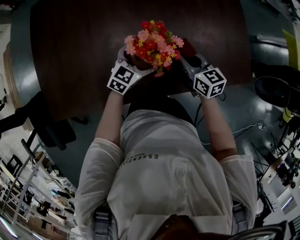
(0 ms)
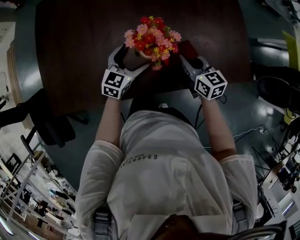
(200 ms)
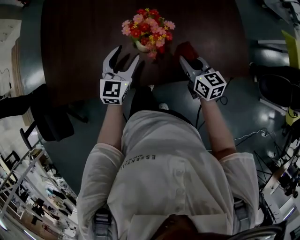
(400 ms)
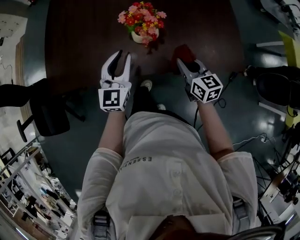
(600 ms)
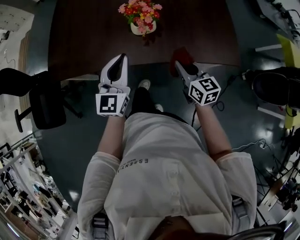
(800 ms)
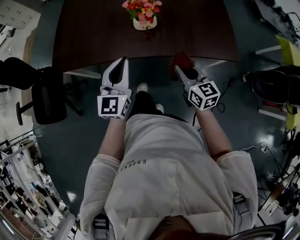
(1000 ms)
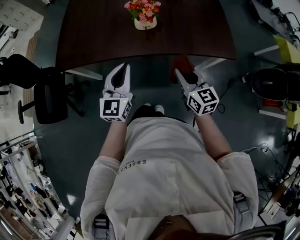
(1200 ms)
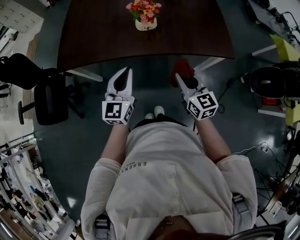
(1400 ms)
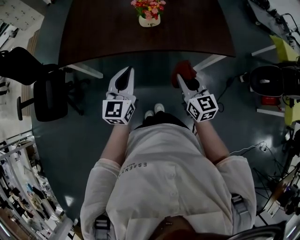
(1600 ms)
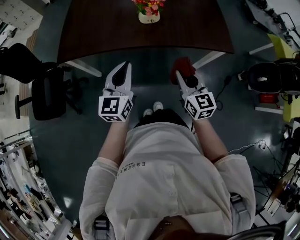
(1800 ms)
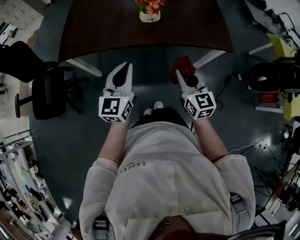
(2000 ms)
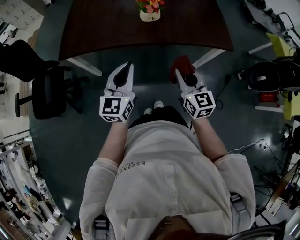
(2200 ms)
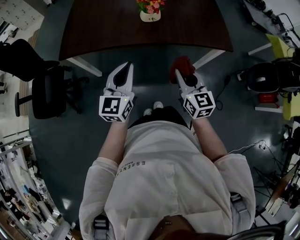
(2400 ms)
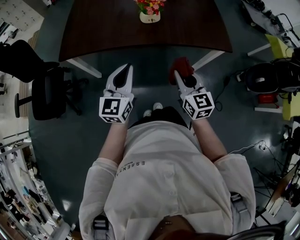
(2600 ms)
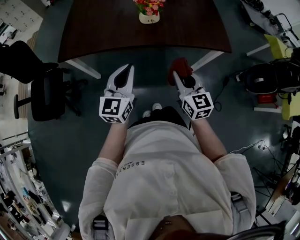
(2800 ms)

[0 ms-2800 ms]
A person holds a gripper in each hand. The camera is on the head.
0 ms to 1400 ms: The right gripper is displaced backward by some 30 cm. Meanwhile the left gripper travels backward and upward by about 35 cm, rotates about 40 degrees, and closes its fingers.
1400 ms to 2800 ms: Both grippers travel together backward, some 5 cm.

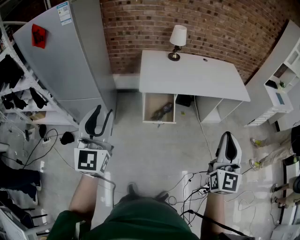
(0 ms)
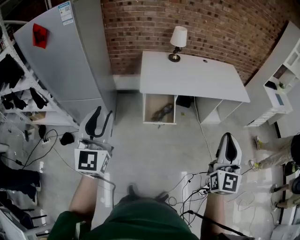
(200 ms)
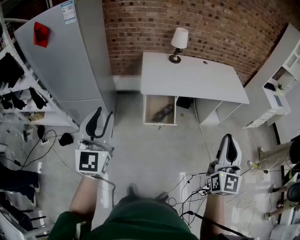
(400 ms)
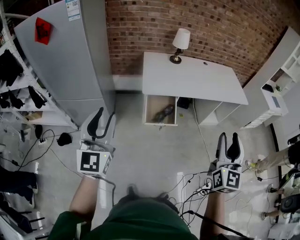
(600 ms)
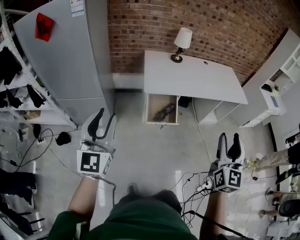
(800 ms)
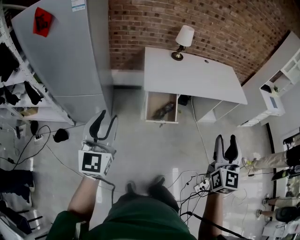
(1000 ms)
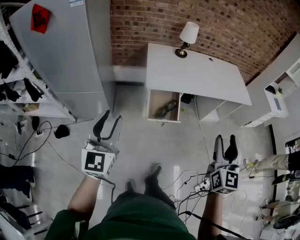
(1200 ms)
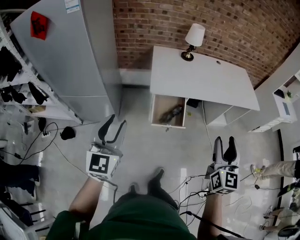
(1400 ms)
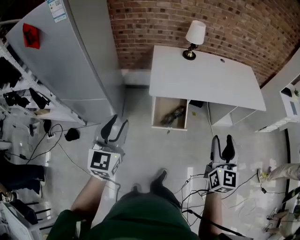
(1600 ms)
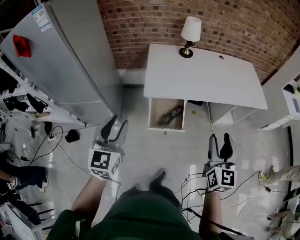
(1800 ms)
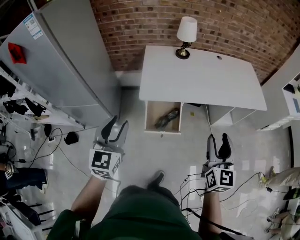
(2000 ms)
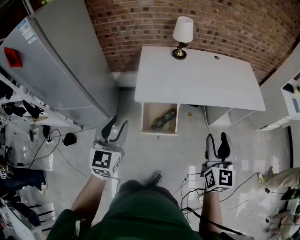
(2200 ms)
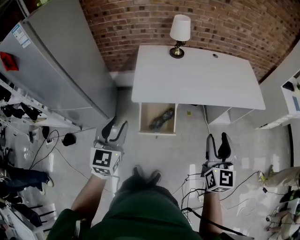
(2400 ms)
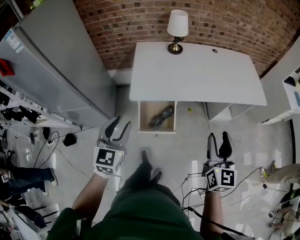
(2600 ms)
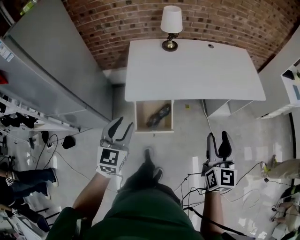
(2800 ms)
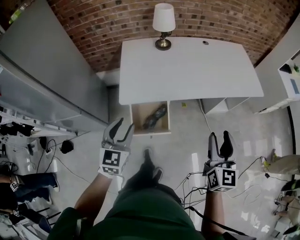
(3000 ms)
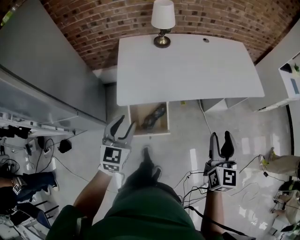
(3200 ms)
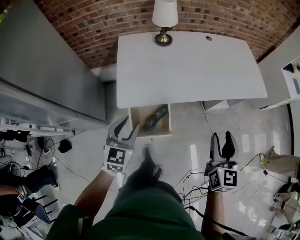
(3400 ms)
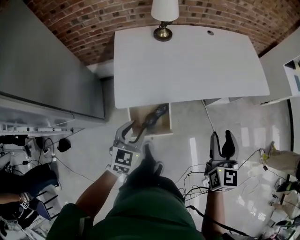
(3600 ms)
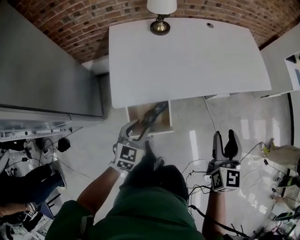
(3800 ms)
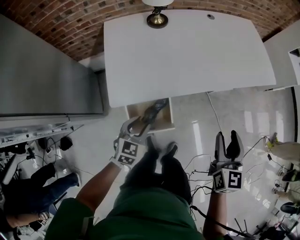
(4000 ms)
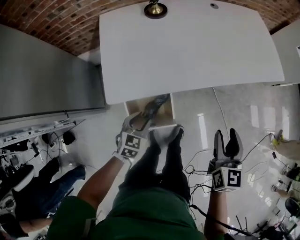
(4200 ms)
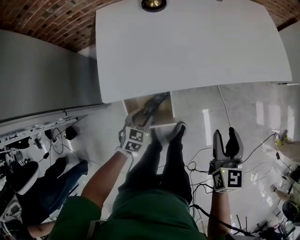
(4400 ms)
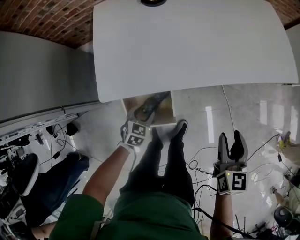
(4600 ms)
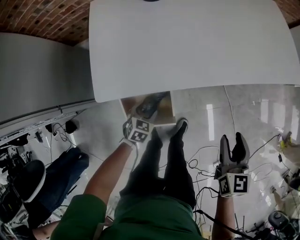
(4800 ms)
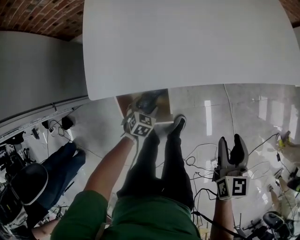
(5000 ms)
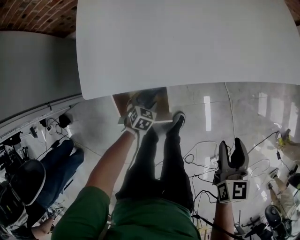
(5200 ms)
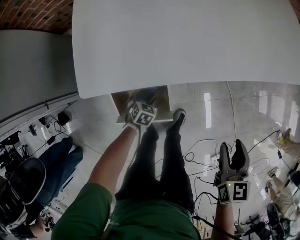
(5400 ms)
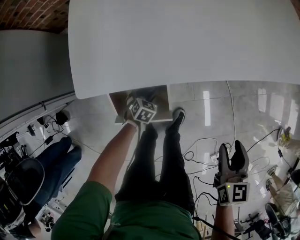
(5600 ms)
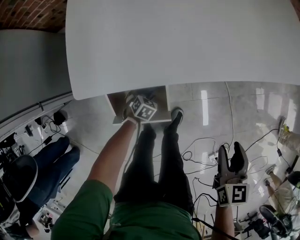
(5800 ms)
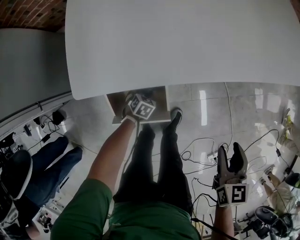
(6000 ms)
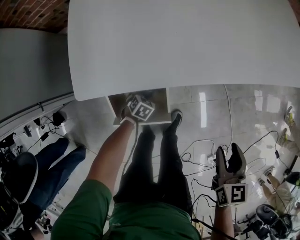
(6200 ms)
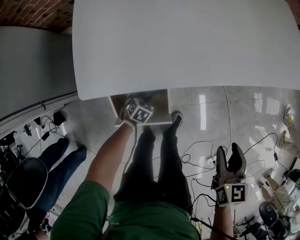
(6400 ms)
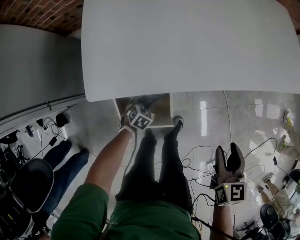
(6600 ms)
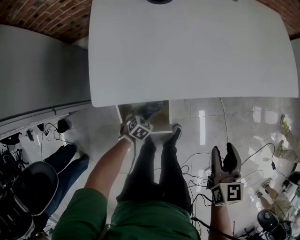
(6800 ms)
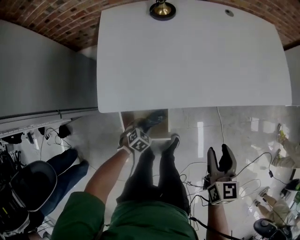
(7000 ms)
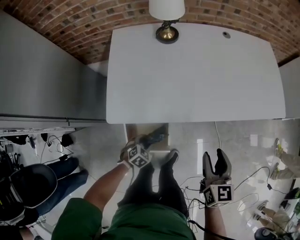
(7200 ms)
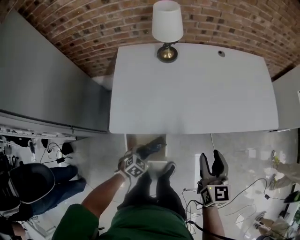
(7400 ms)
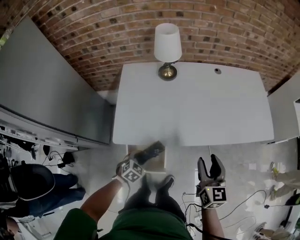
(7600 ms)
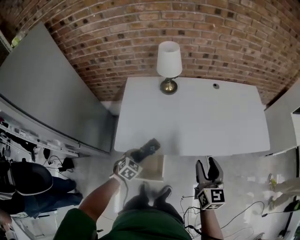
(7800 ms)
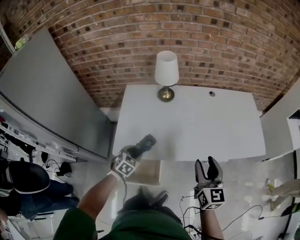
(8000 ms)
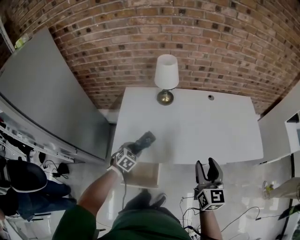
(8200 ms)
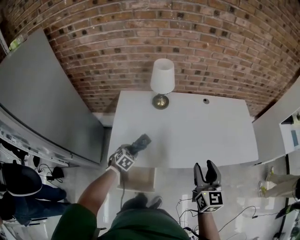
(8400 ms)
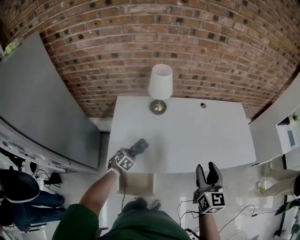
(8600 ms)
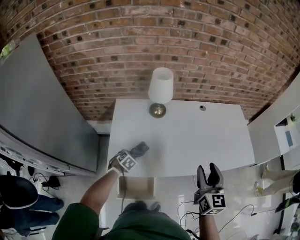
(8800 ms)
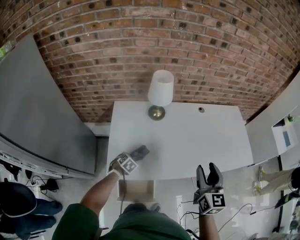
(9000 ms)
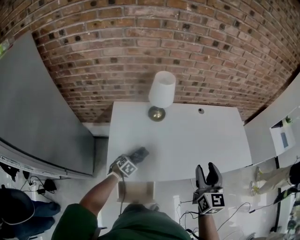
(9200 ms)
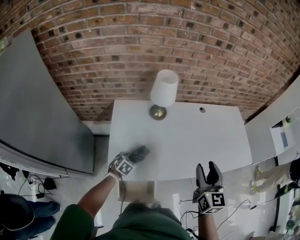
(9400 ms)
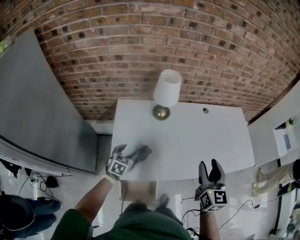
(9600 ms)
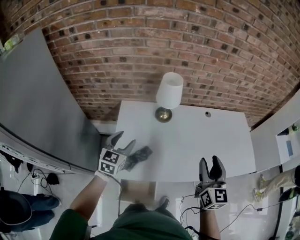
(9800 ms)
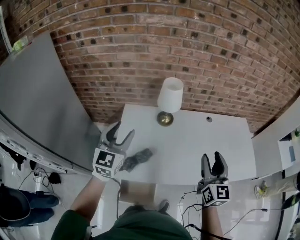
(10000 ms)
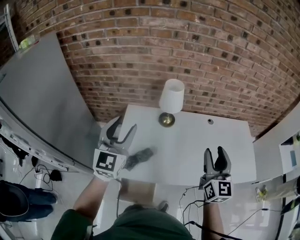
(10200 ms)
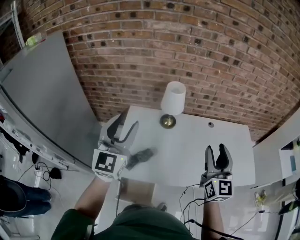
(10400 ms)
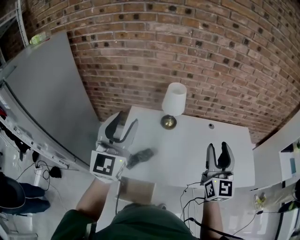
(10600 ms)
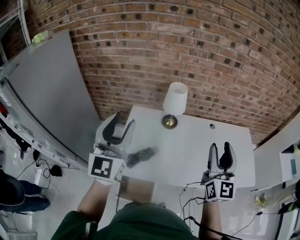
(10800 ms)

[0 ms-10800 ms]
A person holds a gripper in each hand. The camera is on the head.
0 ms to 1600 ms: Both grippers move forward and downward, roughly 20 cm. The right gripper opens.
1600 ms to 3000 ms: The left gripper heads forward, to the right and downward, covering approximately 30 cm. The right gripper travels forward and to the right by approximately 20 cm.
3000 ms to 4600 ms: The left gripper moves downward and forward, approximately 40 cm, and points its fingers some 30 degrees further downward. The right gripper heads downward and forward, covering approximately 30 cm, and swivels approximately 20 degrees.
4600 ms to 6200 ms: The right gripper travels downward by roughly 10 cm. The left gripper is displaced downward by some 25 cm, and opens, then closes again.
6200 ms to 7800 ms: Both grippers travel together upward, approximately 35 cm. The right gripper changes its angle by about 30 degrees.
7800 ms to 9200 ms: The left gripper heads forward, to the left and downward, covering about 15 cm. The right gripper heads upward, forward and to the left, covering about 15 cm.
9200 ms to 10800 ms: The left gripper moves upward, some 60 cm, and points its fingers roughly 80 degrees further upward. Meanwhile the right gripper moves upward, approximately 15 cm, and rotates some 20 degrees.

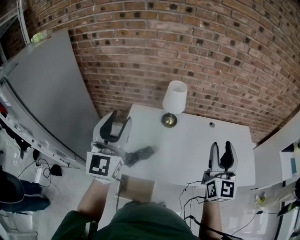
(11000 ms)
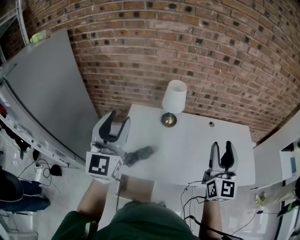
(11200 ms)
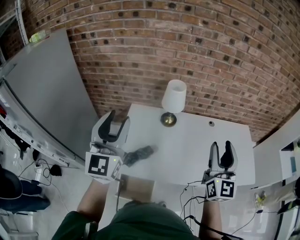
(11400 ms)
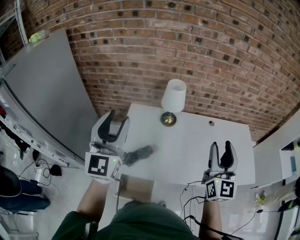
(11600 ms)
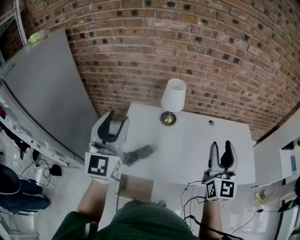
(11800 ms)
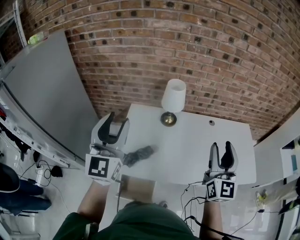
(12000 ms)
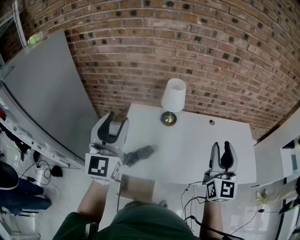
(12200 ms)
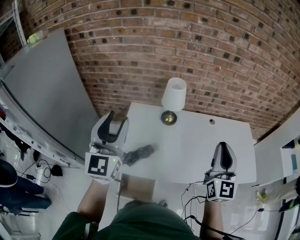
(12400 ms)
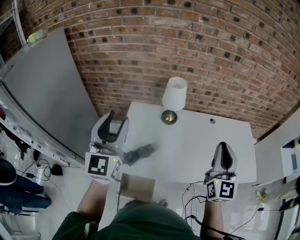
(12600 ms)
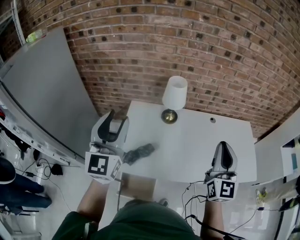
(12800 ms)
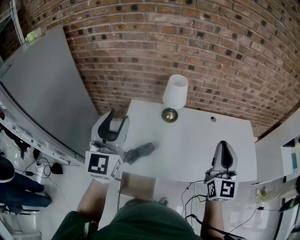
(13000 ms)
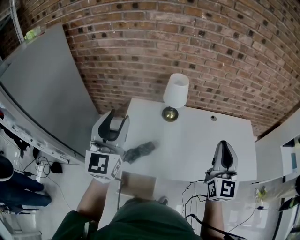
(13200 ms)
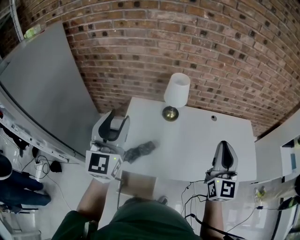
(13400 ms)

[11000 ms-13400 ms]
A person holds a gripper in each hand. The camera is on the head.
11000 ms to 12200 ms: The two grippers keep their place.
12200 ms to 13400 ms: The right gripper closes.

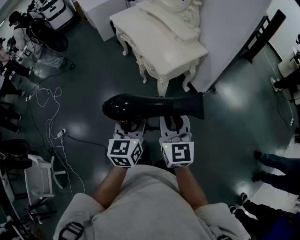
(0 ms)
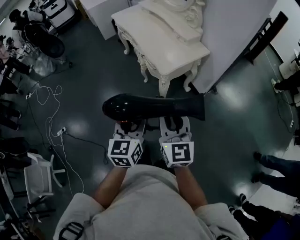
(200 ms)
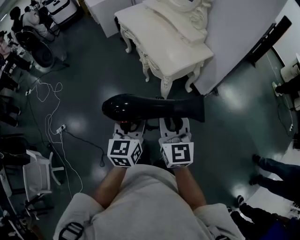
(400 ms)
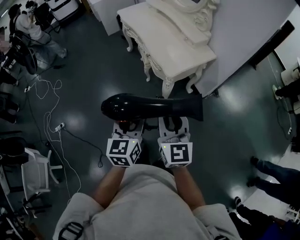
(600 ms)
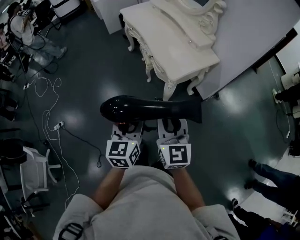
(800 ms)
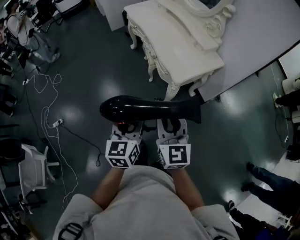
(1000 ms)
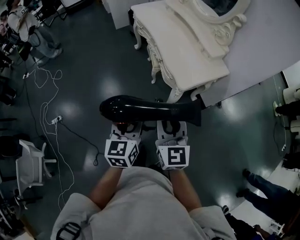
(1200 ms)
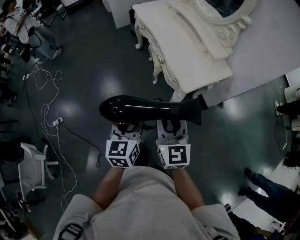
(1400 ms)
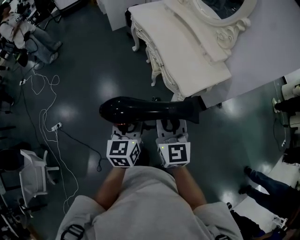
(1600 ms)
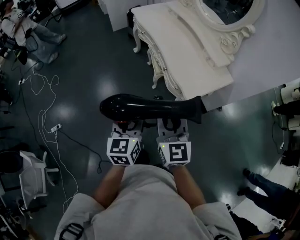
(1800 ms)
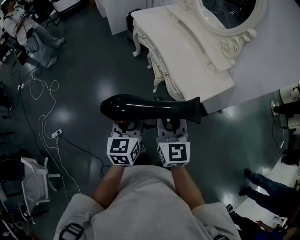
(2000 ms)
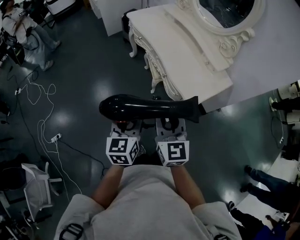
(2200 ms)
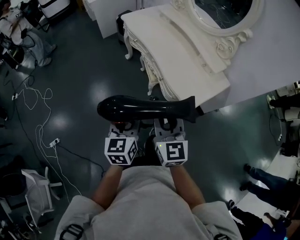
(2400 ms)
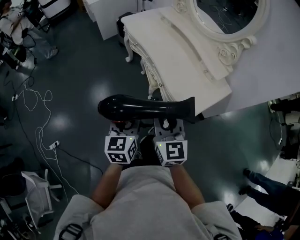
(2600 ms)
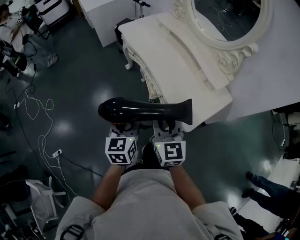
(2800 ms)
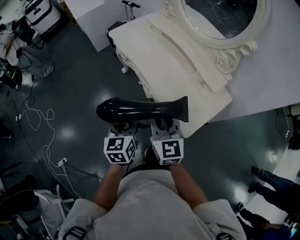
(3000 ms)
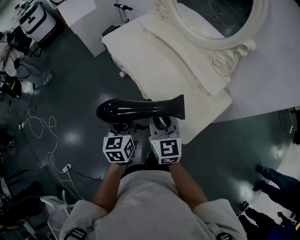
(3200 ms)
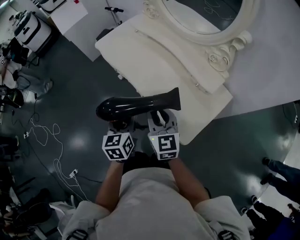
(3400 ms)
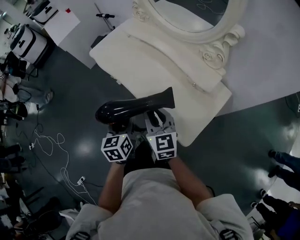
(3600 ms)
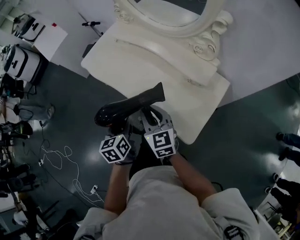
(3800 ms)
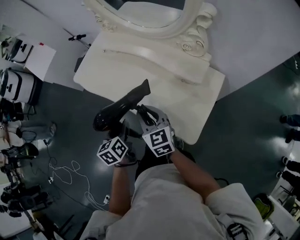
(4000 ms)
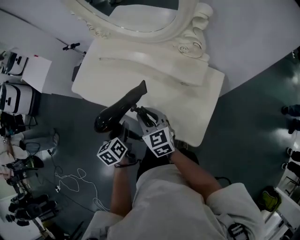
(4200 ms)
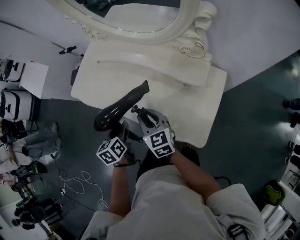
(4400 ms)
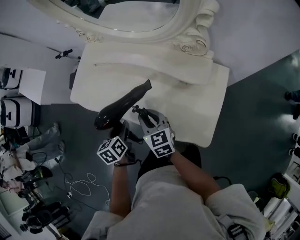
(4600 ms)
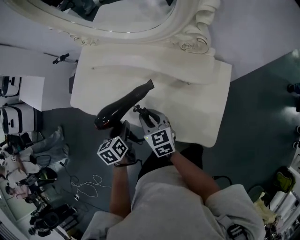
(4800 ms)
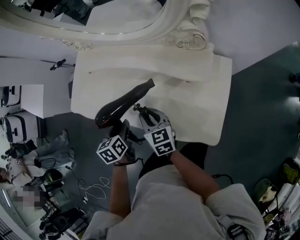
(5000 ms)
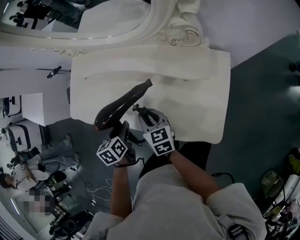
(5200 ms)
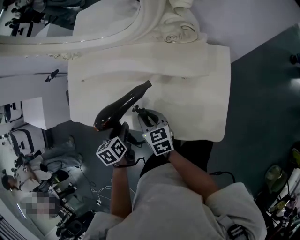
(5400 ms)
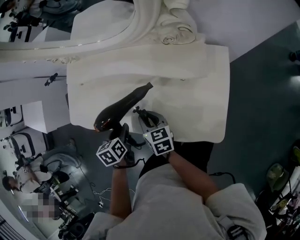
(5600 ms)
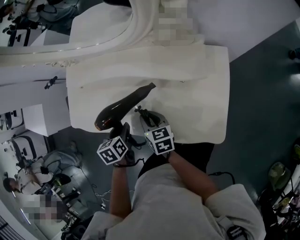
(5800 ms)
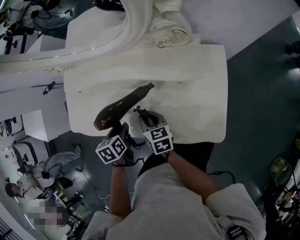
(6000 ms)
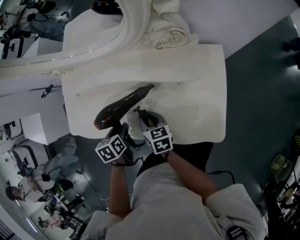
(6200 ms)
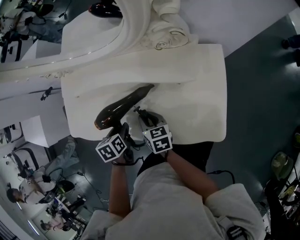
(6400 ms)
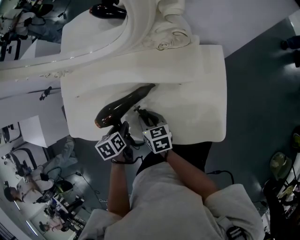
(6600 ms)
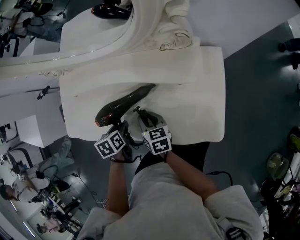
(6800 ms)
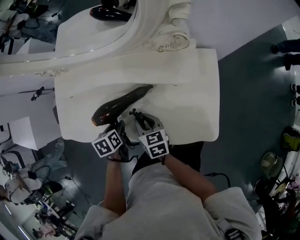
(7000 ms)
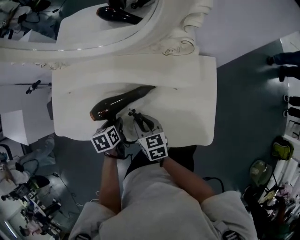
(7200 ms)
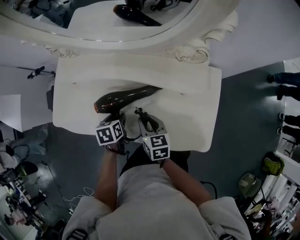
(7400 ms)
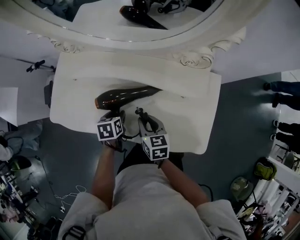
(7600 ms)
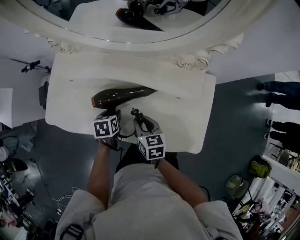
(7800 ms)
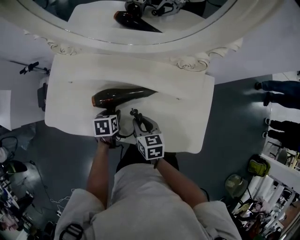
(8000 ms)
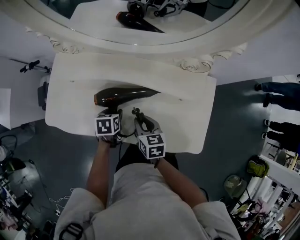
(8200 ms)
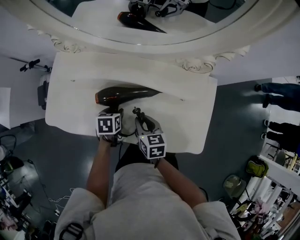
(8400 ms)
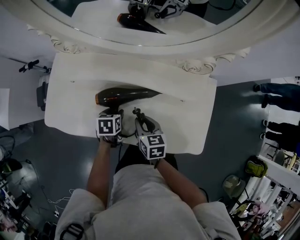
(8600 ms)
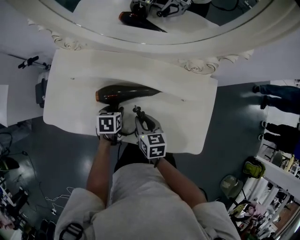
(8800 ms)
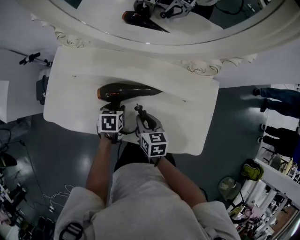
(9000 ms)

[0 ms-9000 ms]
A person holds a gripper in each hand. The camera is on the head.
0 ms to 1600 ms: The grippers both shift forward and to the left by roughly 25 cm.
1600 ms to 3000 ms: The two grippers go approximately 30 cm forward.
3000 ms to 4400 ms: The grippers both shift forward and downward by about 25 cm. The left gripper swivels roughly 20 degrees. Meanwhile the right gripper swivels approximately 20 degrees.
4400 ms to 6000 ms: The right gripper goes roughly 15 cm downward and forward, and swivels about 40 degrees, while the left gripper moves forward and downward, about 15 cm, and changes its angle by about 30 degrees.
6000 ms to 7600 ms: The left gripper travels forward by some 5 cm.
7600 ms to 9000 ms: The grippers stay close to where they were, moving slightly.
